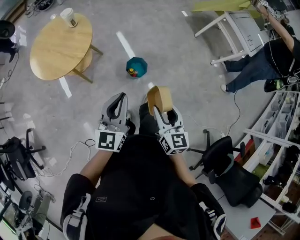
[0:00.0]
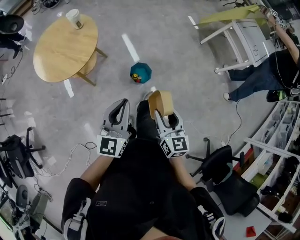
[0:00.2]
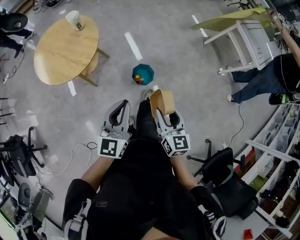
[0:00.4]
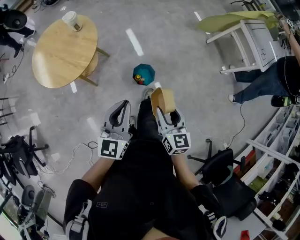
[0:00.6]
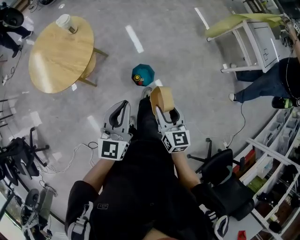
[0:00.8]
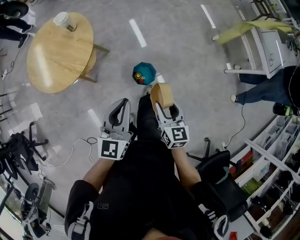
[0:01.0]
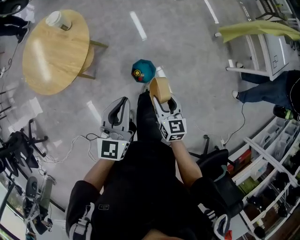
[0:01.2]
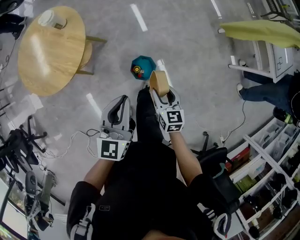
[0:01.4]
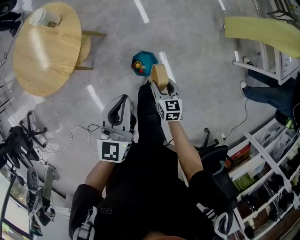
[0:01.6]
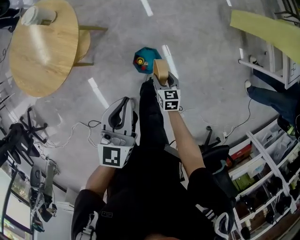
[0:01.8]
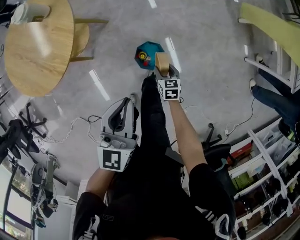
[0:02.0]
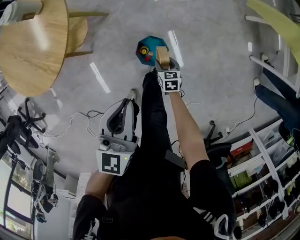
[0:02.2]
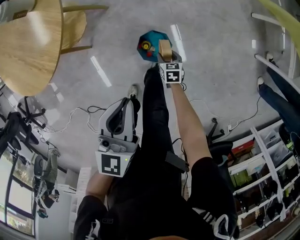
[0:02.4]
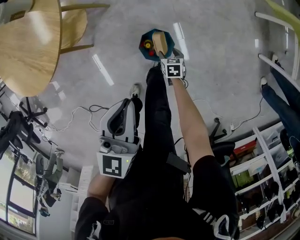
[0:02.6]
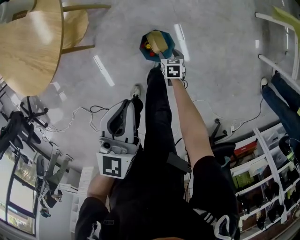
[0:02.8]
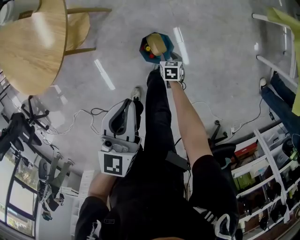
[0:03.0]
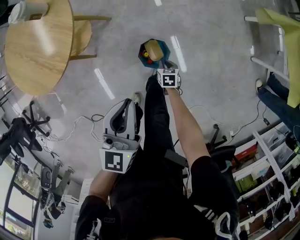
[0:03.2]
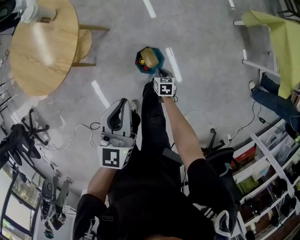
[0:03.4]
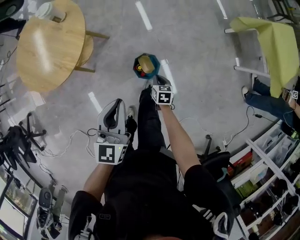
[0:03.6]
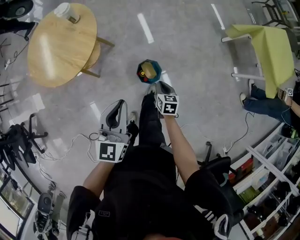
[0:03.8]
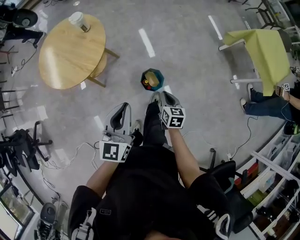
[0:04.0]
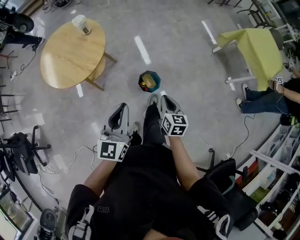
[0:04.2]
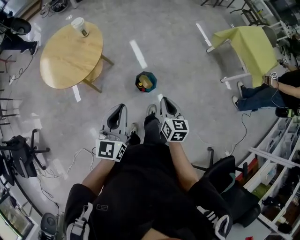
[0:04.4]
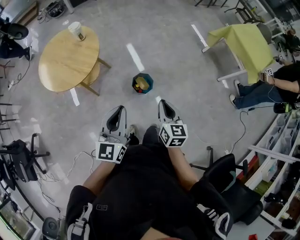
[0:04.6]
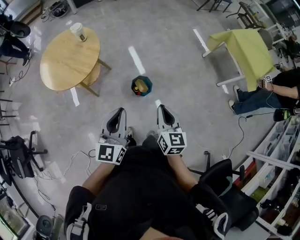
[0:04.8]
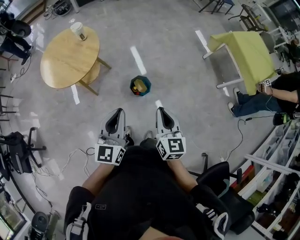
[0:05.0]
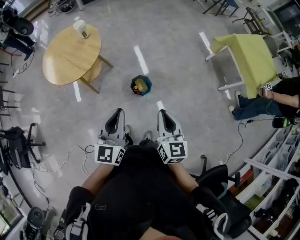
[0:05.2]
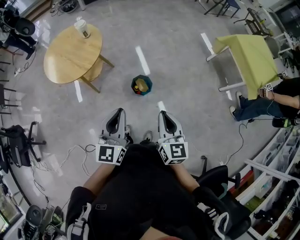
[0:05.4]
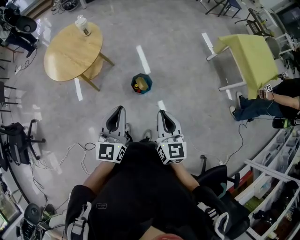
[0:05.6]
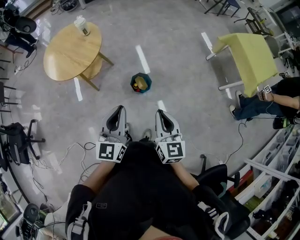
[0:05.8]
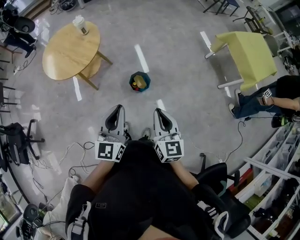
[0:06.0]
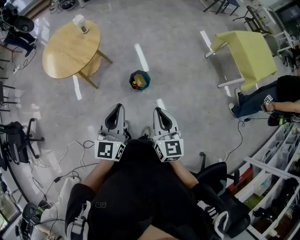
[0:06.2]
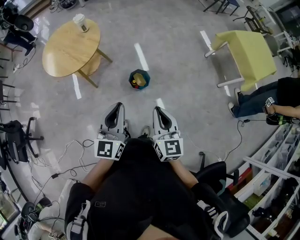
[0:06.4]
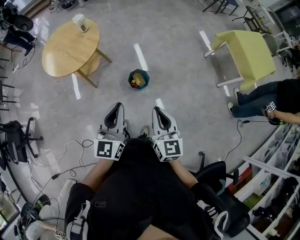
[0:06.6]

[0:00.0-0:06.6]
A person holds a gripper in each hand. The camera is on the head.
0:00.0 to 0:01.6: Both grippers travel together forward and downward, some 40 cm. The right gripper changes its angle by about 30 degrees.
0:01.6 to 0:03.2: The right gripper travels downward by about 25 cm, turns by about 20 degrees, and closes up, while the left gripper moves downward, approximately 5 cm.
0:03.2 to 0:05.0: The left gripper goes approximately 35 cm backward and upward. The right gripper travels upward and backward by about 70 cm, and angles its fingers upward, by roughly 50 degrees.
0:05.0 to 0:06.6: The right gripper heads backward, covering some 5 cm, while the left gripper ends up approximately 5 cm from where it was.

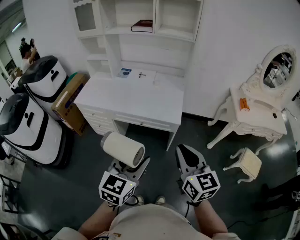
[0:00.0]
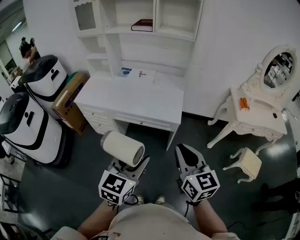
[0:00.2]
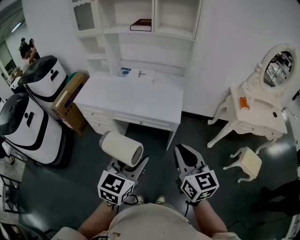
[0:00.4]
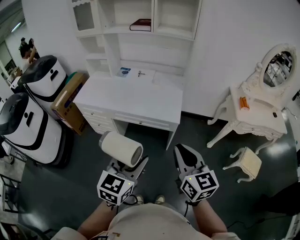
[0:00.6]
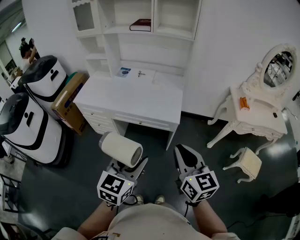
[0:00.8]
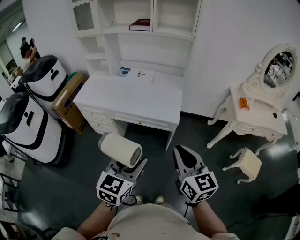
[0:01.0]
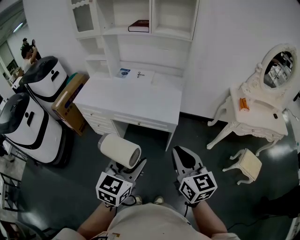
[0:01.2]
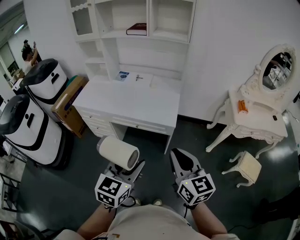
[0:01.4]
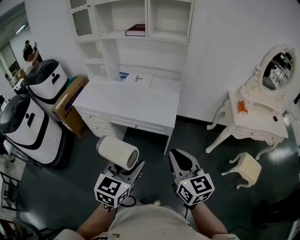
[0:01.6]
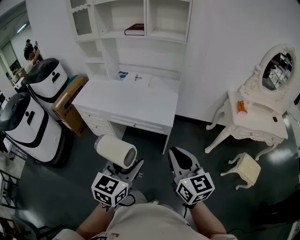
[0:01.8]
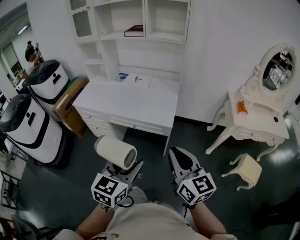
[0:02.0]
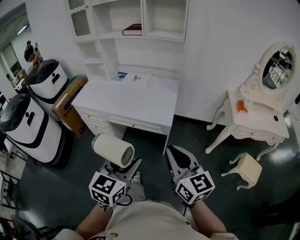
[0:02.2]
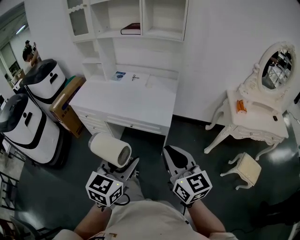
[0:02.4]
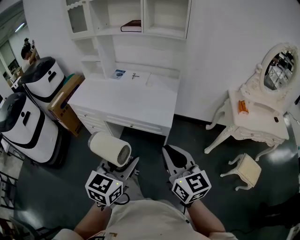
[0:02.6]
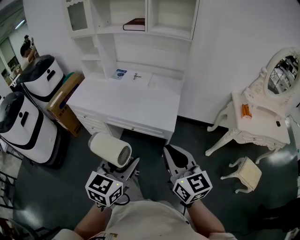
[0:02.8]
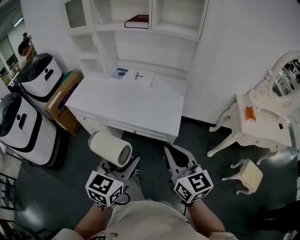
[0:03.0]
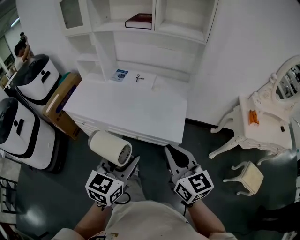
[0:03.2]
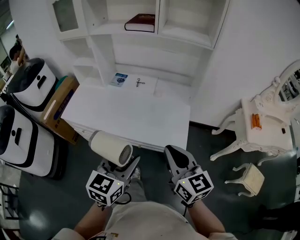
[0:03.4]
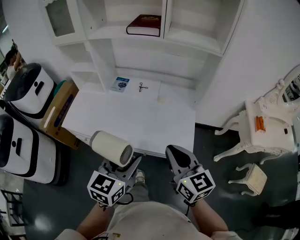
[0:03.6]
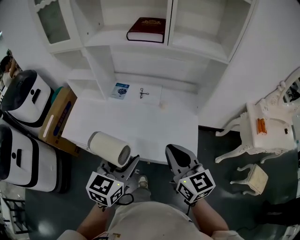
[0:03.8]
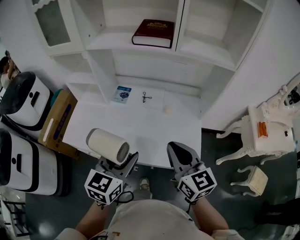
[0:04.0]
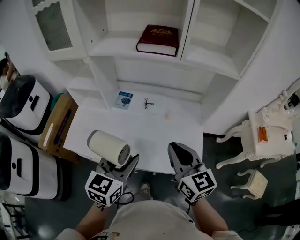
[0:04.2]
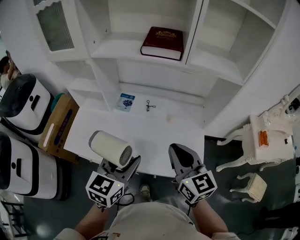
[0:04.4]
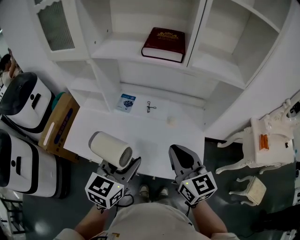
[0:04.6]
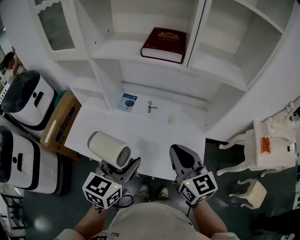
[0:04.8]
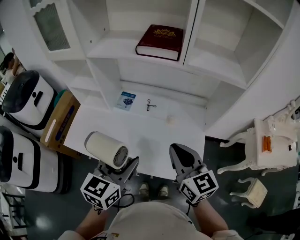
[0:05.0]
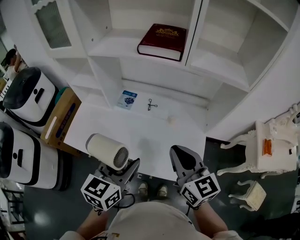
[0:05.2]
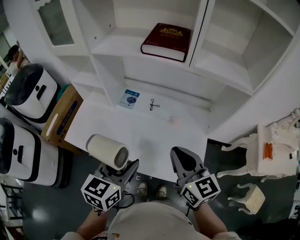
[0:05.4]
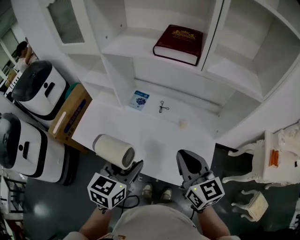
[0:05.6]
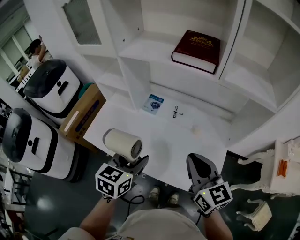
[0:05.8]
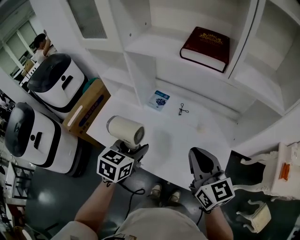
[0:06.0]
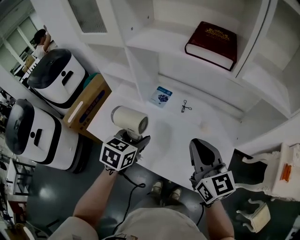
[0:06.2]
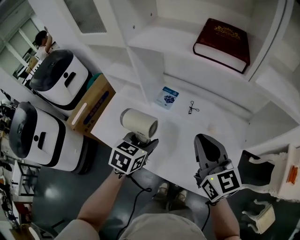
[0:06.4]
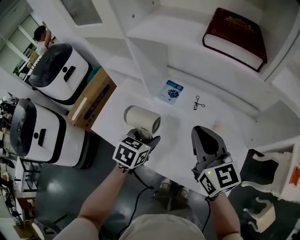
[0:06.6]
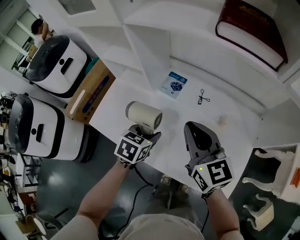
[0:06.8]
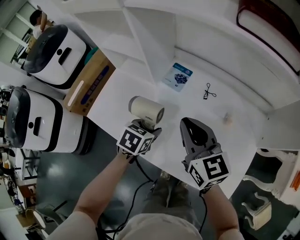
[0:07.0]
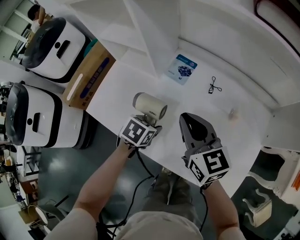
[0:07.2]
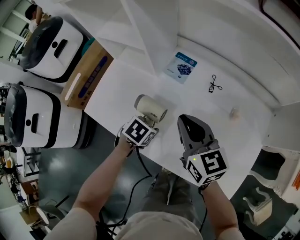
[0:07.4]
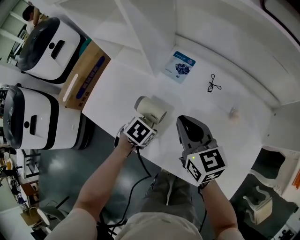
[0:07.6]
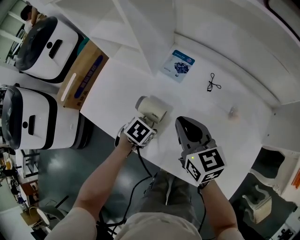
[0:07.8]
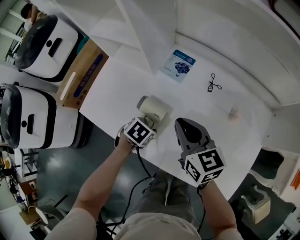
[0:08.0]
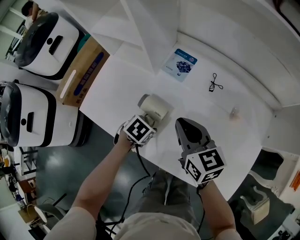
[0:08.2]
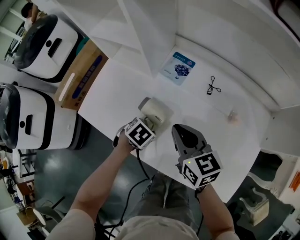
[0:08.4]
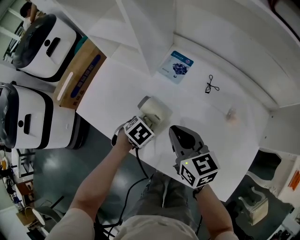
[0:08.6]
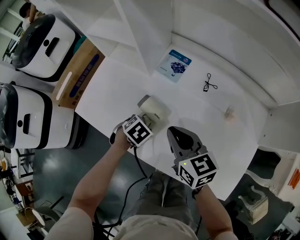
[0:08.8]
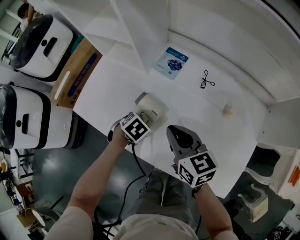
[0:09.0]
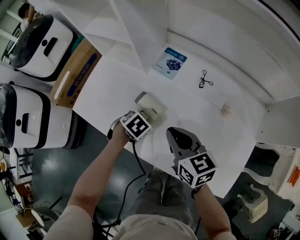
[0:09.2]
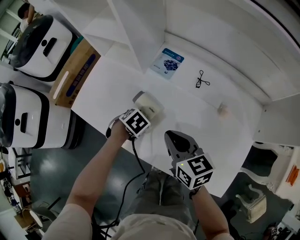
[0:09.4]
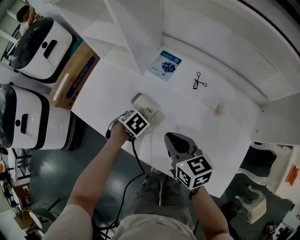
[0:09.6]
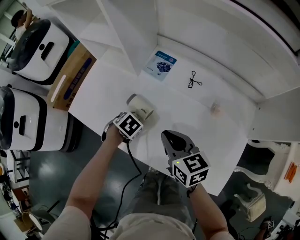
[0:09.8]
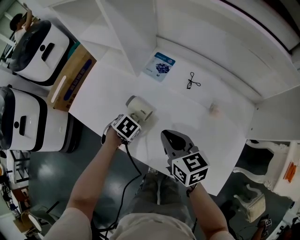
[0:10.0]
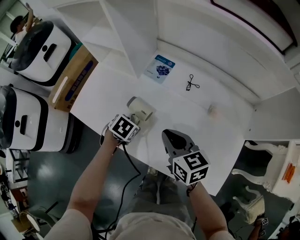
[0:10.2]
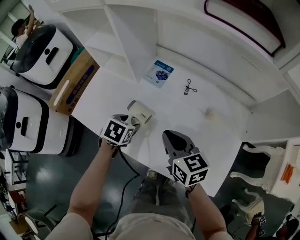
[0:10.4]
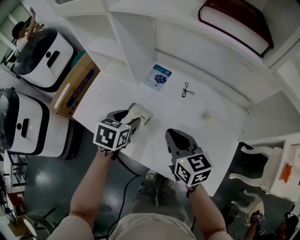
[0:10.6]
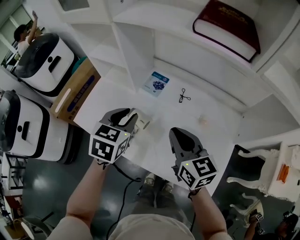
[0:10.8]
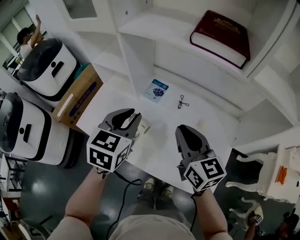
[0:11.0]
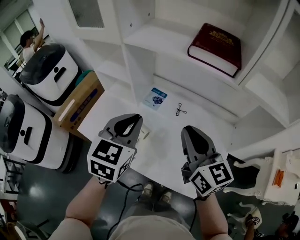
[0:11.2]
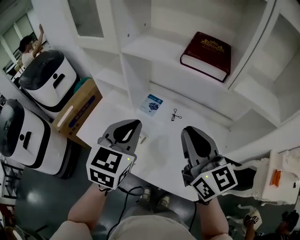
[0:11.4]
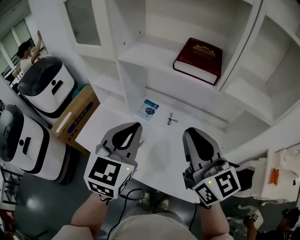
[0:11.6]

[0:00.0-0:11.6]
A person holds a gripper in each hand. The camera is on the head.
0:00.0 to 0:01.4: The grippers move only a little.
0:01.4 to 0:02.8: The grippers both shift forward by approximately 5 cm.
0:02.8 to 0:04.4: The pair of grippers is taken forward and to the left, some 50 cm.
0:04.4 to 0:05.8: The left gripper shifts by roughly 5 cm.
0:05.8 to 0:07.2: The left gripper heads downward and forward, covering approximately 30 cm, and angles its fingers downward, by some 30 degrees. Meanwhile the right gripper goes about 30 cm forward, downward and to the left.
0:07.2 to 0:08.8: Both grippers travel together downward, approximately 10 cm. The left gripper swivels about 20 degrees.
0:08.8 to 0:10.2: The right gripper shifts by approximately 5 cm.
0:10.2 to 0:11.6: The two grippers go roughly 40 cm upward. The left gripper points its fingers some 60 degrees further upward, and closes; the right gripper angles its fingers upward, by some 30 degrees.

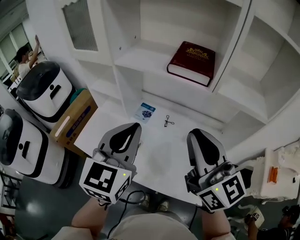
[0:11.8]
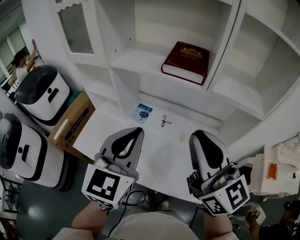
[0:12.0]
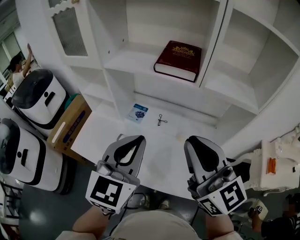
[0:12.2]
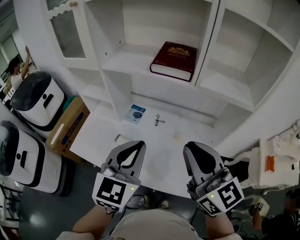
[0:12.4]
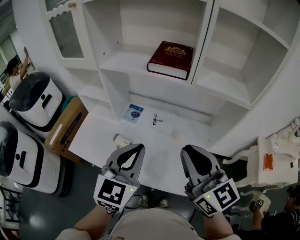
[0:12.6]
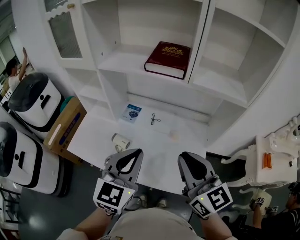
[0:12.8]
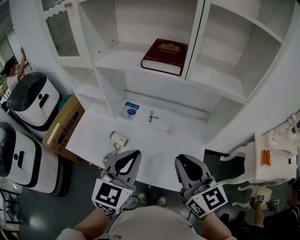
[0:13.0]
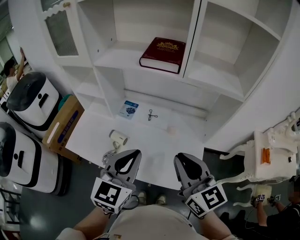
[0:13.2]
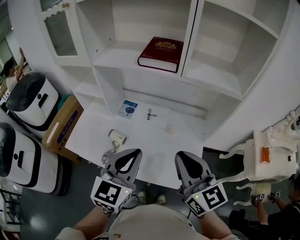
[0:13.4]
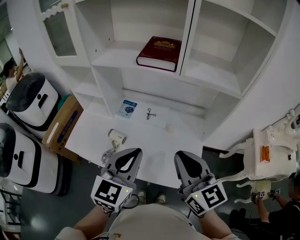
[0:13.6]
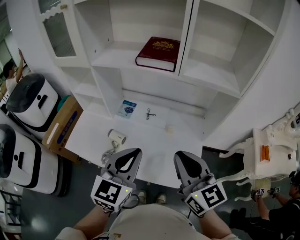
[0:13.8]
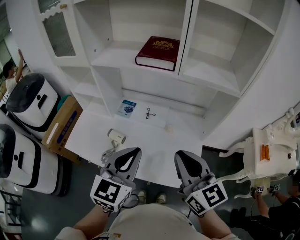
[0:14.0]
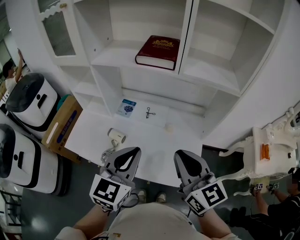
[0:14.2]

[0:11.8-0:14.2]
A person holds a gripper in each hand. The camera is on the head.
0:11.8 to 0:13.0: The left gripper goes about 15 cm backward, downward and to the right. Meanwhile the right gripper travels downward and backward by approximately 15 cm.
0:13.0 to 0:14.2: There are only small adjustments of the grippers.

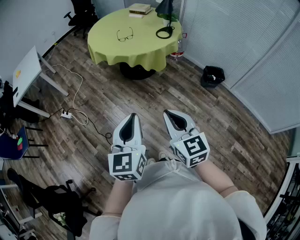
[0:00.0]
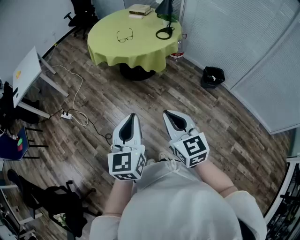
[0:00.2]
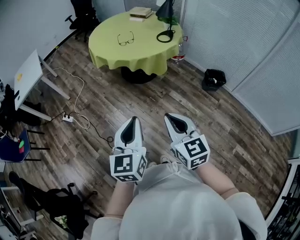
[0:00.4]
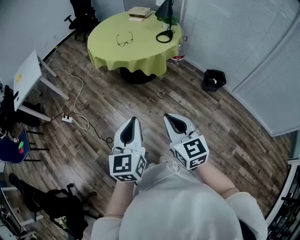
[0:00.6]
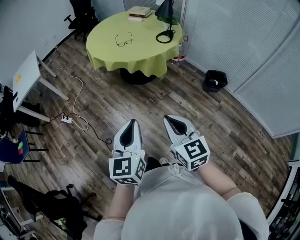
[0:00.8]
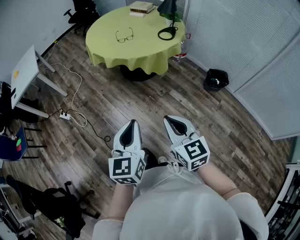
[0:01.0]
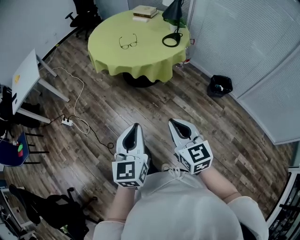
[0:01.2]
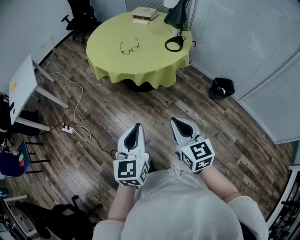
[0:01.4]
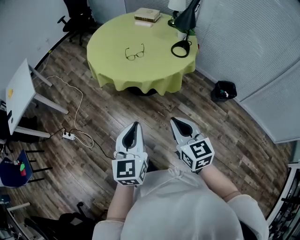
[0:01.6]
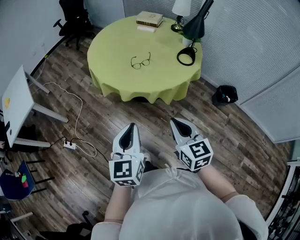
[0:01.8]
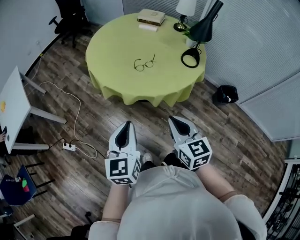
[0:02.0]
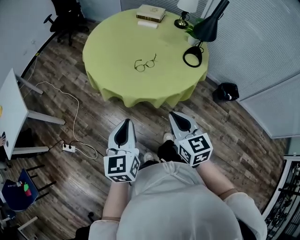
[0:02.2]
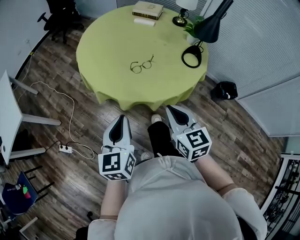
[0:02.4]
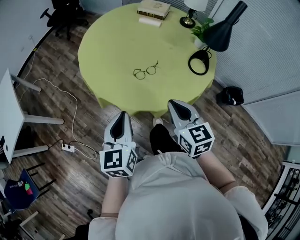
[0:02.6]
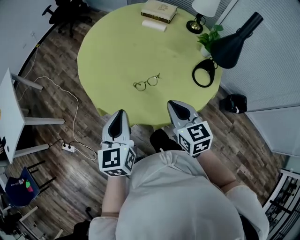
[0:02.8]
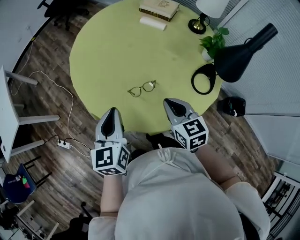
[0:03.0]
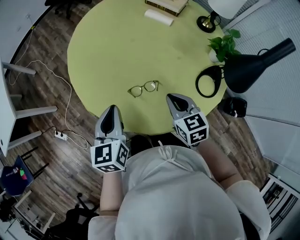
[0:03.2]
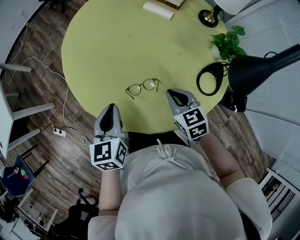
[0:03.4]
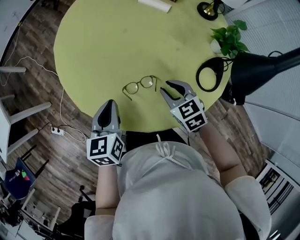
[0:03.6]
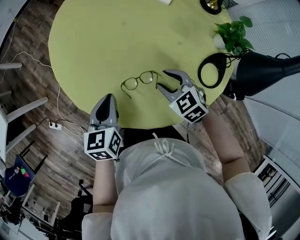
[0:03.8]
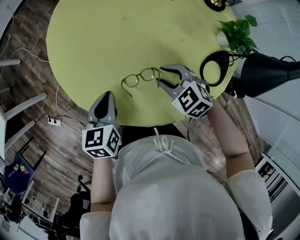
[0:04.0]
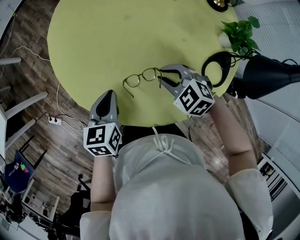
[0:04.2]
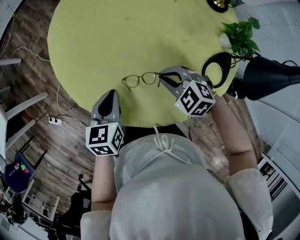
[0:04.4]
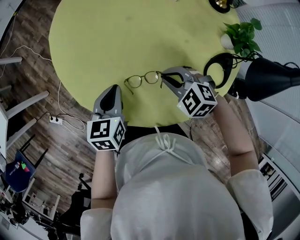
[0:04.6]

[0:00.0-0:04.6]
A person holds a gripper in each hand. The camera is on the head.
0:00.0 to 0:01.6: The grippers both shift forward by about 30 cm.
0:01.6 to 0:03.0: The two grippers travel together, forward, some 50 cm.
0:03.0 to 0:04.6: The left gripper is displaced downward and forward by about 20 cm, and changes its angle by about 20 degrees, while the right gripper heads forward and downward, covering roughly 20 cm, rotates around the line of its fingers by some 50 degrees, counterclockwise from behind, and opens and closes again.
